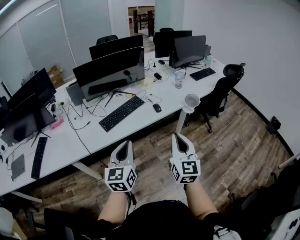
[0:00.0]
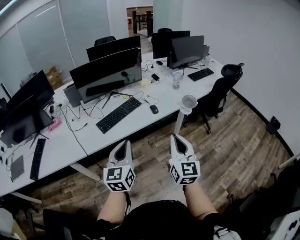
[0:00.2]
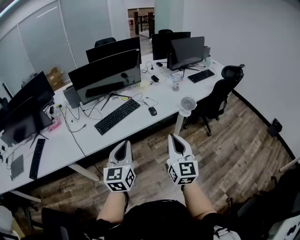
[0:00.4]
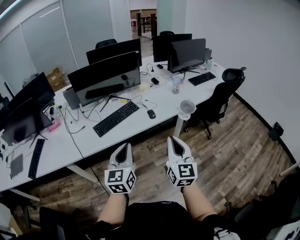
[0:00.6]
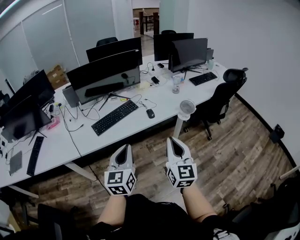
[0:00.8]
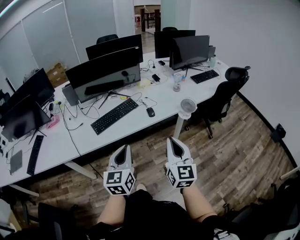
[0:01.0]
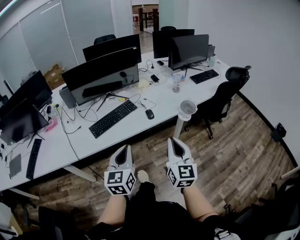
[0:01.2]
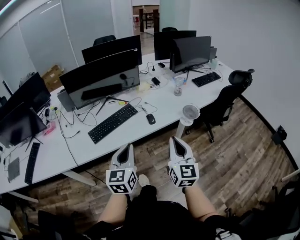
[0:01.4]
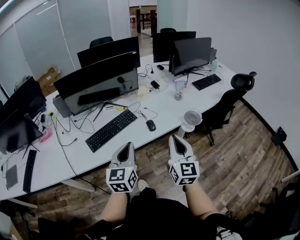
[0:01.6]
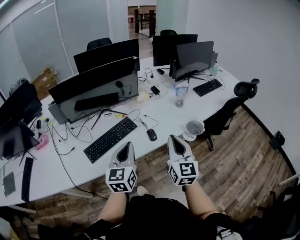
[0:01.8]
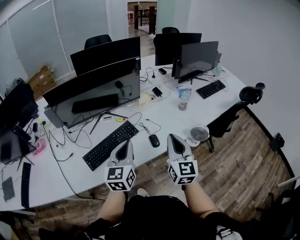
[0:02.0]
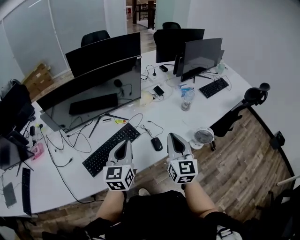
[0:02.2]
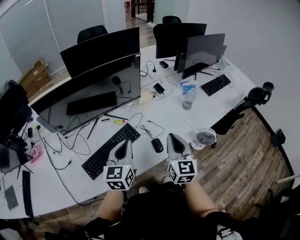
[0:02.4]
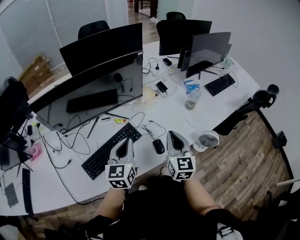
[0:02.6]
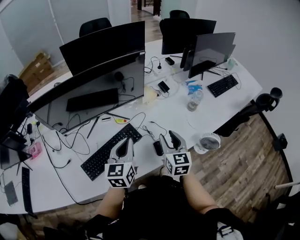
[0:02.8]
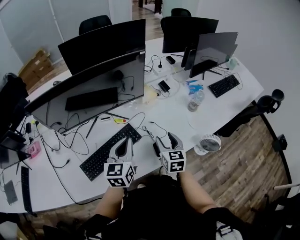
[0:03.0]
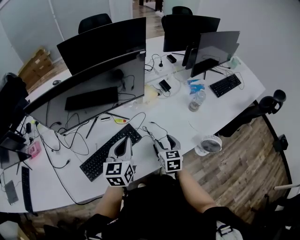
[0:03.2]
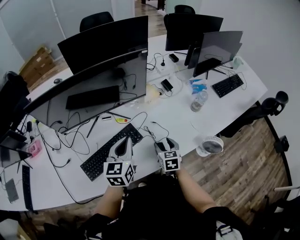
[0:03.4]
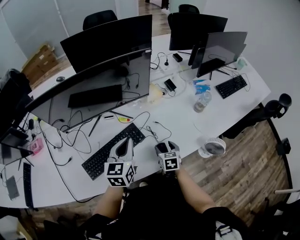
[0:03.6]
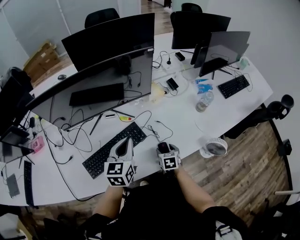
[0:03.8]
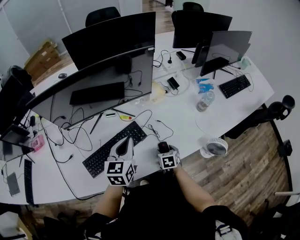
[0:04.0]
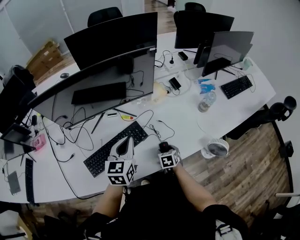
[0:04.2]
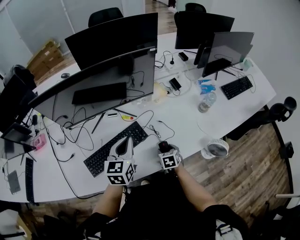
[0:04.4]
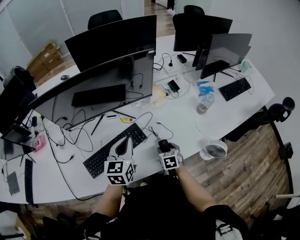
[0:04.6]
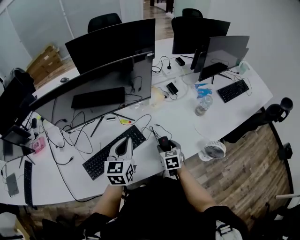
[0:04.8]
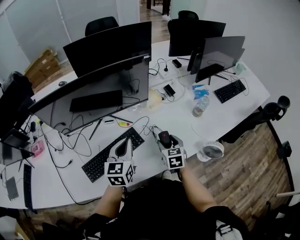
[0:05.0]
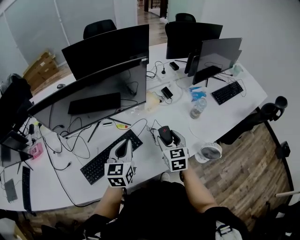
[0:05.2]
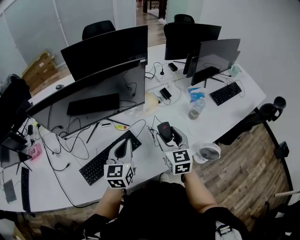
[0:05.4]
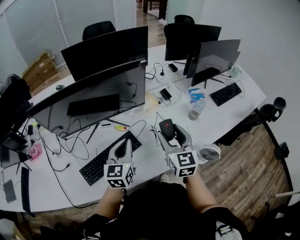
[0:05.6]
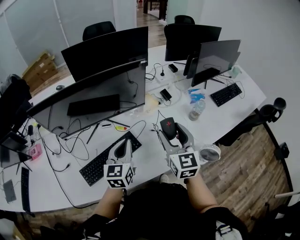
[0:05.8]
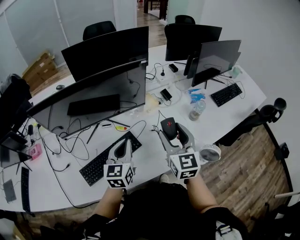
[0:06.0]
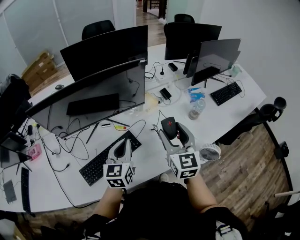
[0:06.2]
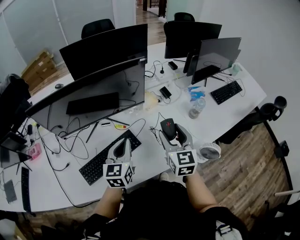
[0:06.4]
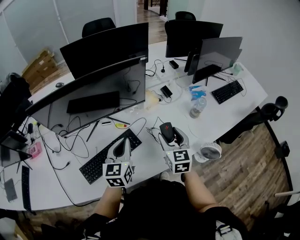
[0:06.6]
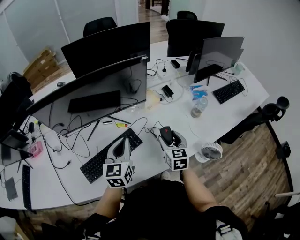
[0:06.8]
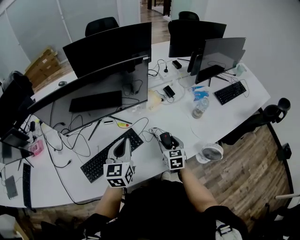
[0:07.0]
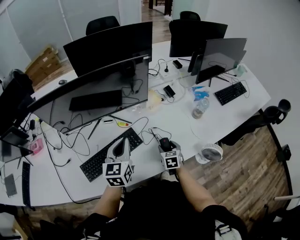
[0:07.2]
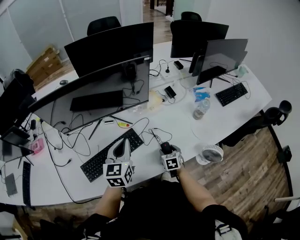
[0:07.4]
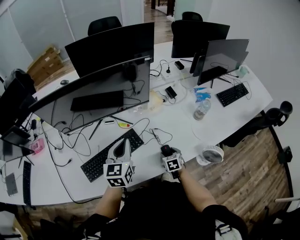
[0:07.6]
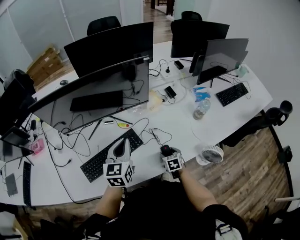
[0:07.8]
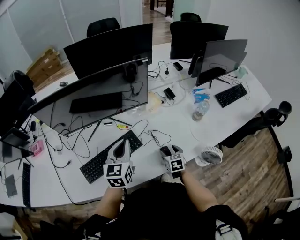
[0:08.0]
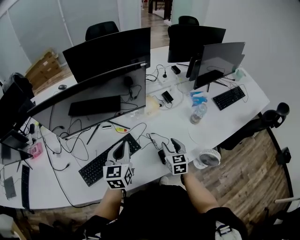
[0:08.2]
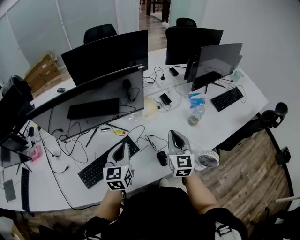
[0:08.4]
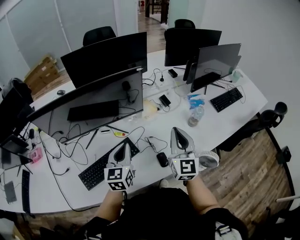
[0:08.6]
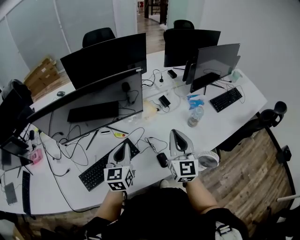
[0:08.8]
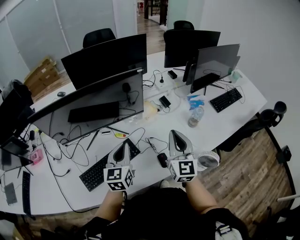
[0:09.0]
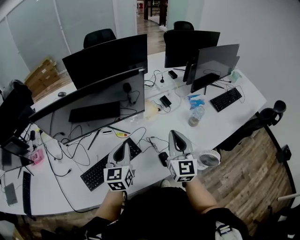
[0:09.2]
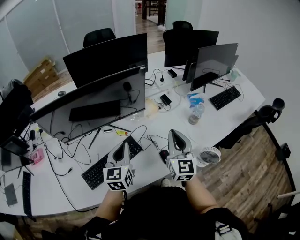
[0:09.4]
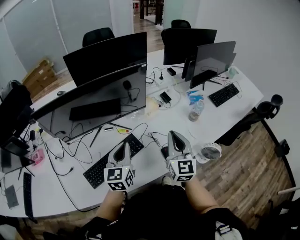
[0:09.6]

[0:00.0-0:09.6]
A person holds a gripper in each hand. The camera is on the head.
0:00.0 to 0:01.6: The left gripper shifts some 20 cm forward and to the right. The right gripper moves forward, roughly 20 cm.
0:01.6 to 0:03.2: The right gripper goes some 40 cm forward and downward, points its fingers approximately 30 degrees further downward, and opens its fingers. The left gripper is displaced forward by roughly 30 cm.
0:03.2 to 0:04.8: The right gripper is displaced downward by some 5 cm.
0:04.8 to 0:06.4: The right gripper heads upward, covering some 25 cm, and tips its fingers upward by roughly 30 degrees.
0:06.4 to 0:08.0: The right gripper moves downward, about 30 cm, and angles its fingers downward, by approximately 30 degrees.
0:08.0 to 0:09.6: The right gripper shifts about 30 cm upward, points its fingers some 40 degrees further upward, and closes.

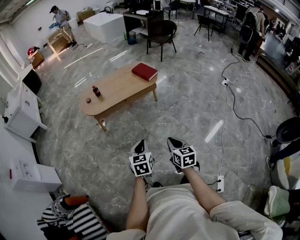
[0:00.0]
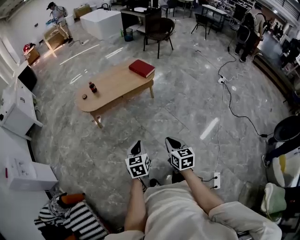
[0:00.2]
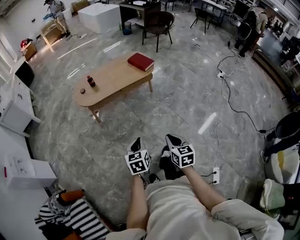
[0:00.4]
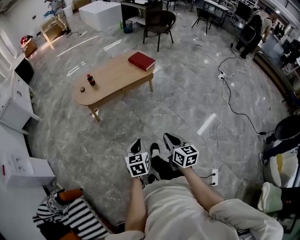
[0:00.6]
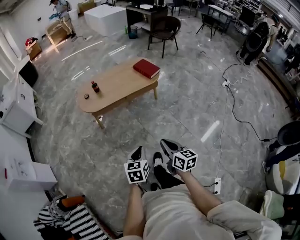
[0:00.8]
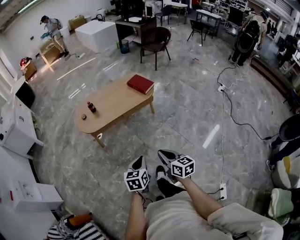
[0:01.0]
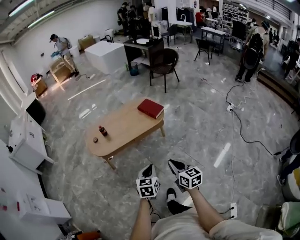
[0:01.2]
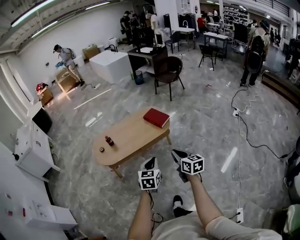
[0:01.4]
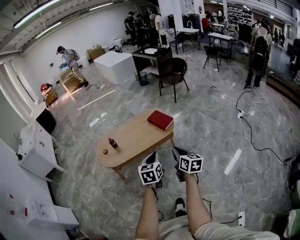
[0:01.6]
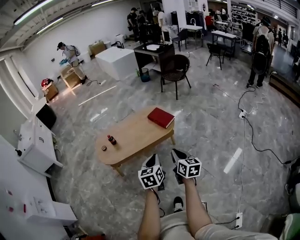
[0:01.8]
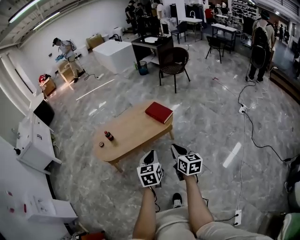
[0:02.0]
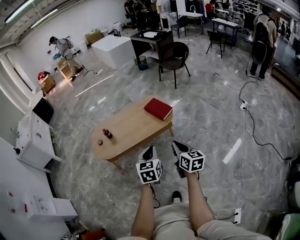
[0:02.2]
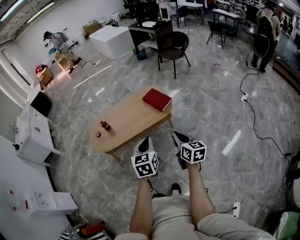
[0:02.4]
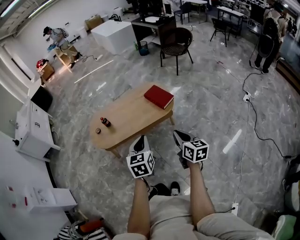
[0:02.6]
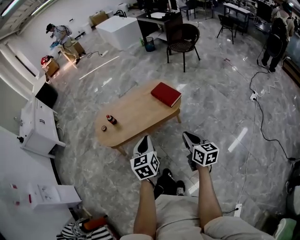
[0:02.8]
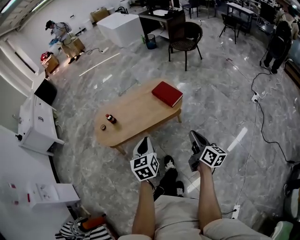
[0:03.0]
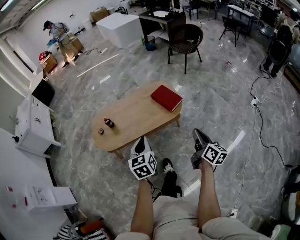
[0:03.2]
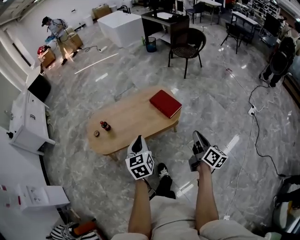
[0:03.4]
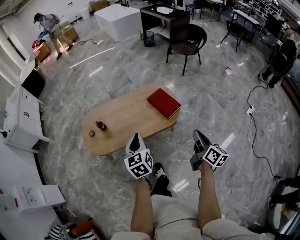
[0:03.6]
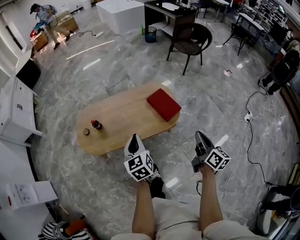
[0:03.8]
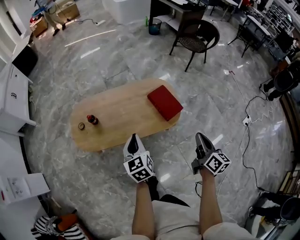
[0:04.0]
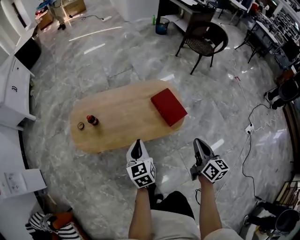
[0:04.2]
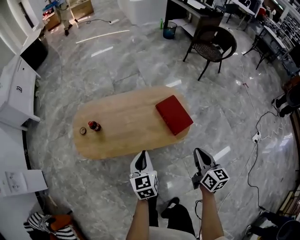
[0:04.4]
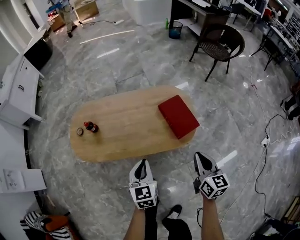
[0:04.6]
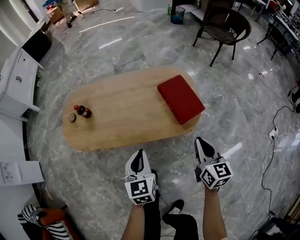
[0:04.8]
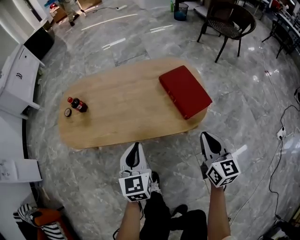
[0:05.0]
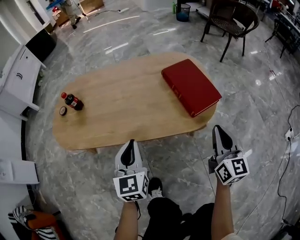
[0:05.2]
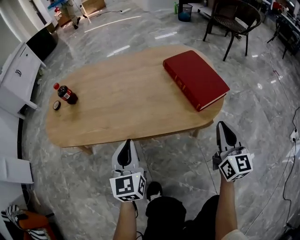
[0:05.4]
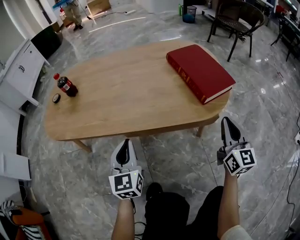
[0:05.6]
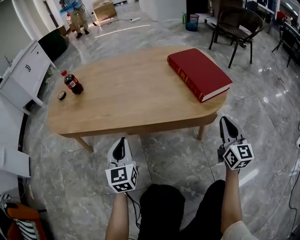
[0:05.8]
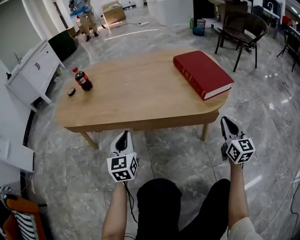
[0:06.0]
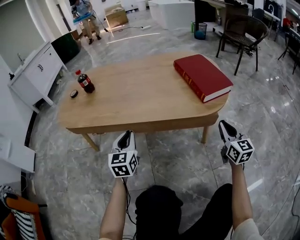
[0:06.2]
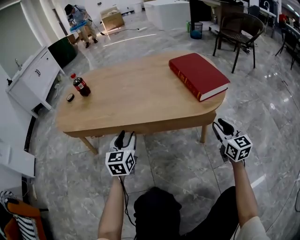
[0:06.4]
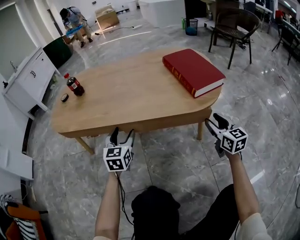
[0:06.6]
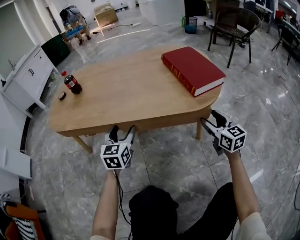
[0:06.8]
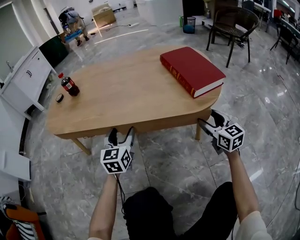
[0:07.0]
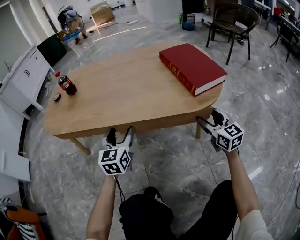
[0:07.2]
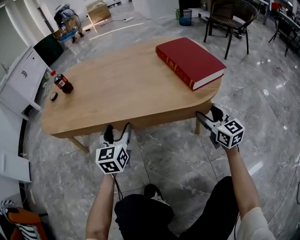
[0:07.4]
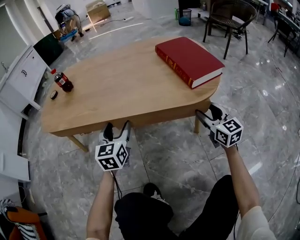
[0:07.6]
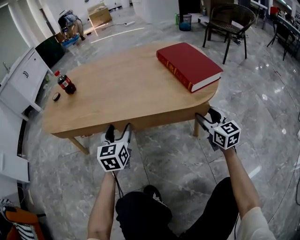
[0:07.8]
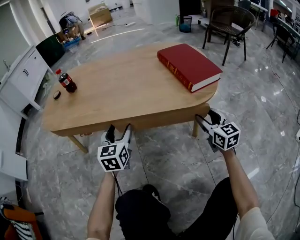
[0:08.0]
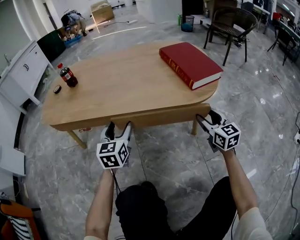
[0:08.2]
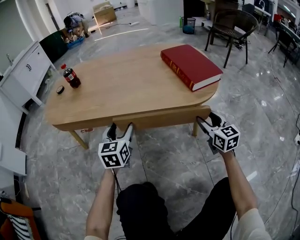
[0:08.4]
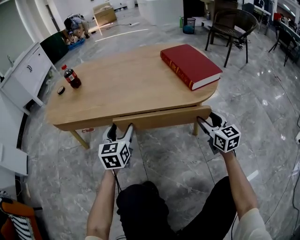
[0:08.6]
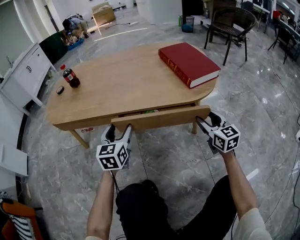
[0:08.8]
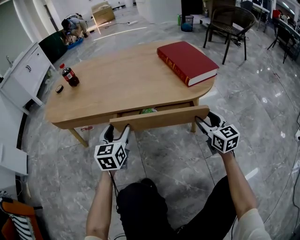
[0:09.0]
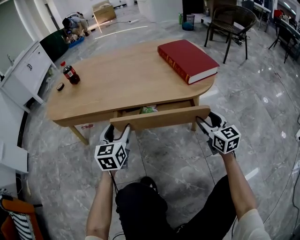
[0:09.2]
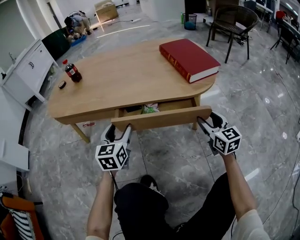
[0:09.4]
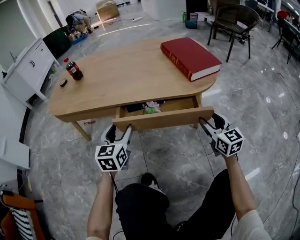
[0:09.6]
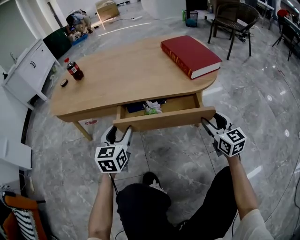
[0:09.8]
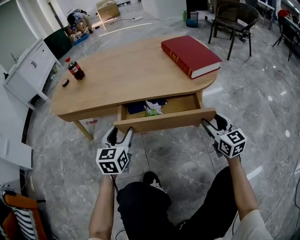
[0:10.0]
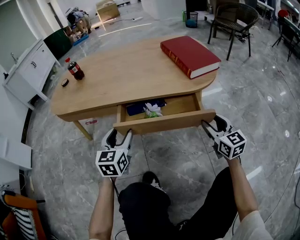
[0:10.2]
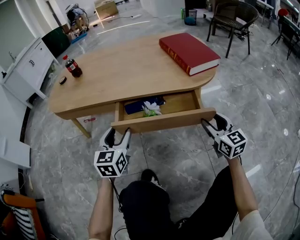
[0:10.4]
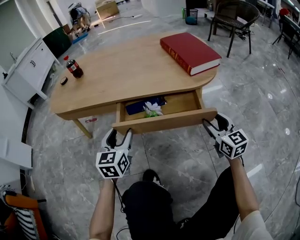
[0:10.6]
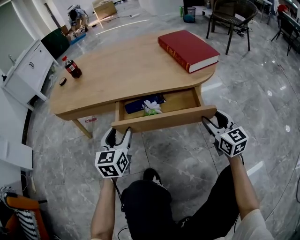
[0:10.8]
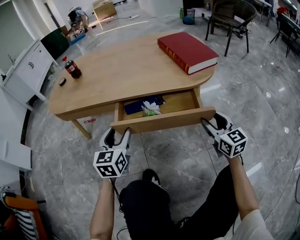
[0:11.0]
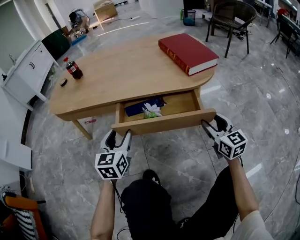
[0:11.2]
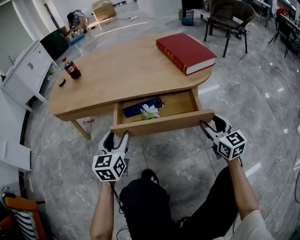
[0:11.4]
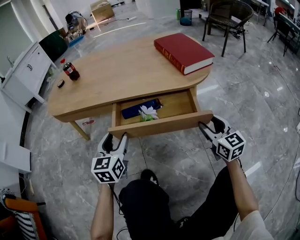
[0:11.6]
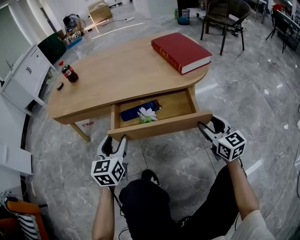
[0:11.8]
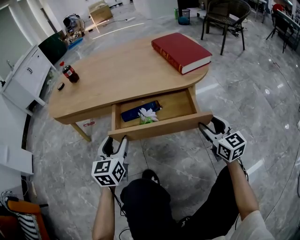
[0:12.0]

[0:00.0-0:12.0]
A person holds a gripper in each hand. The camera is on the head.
0:00.0 to 0:01.6: The two grippers go about 30 cm forward.
0:01.6 to 0:03.0: The left gripper travels forward by roughly 10 cm; the right gripper travels forward and to the right by approximately 15 cm.
0:03.0 to 0:04.4: The right gripper moves forward, some 30 cm, and rotates some 30 degrees; the left gripper moves forward and downward, some 30 cm.
0:04.4 to 0:06.0: Both grippers travel together downward, approximately 40 cm. The left gripper rotates approximately 20 degrees; the right gripper swivels roughly 30 degrees.
0:06.0 to 0:07.6: The right gripper heads downward, covering approximately 5 cm, and opens up; the left gripper shifts by some 5 cm, and opens up.
0:07.6 to 0:09.0: Both grippers travel together backward, approximately 5 cm.
0:09.0 to 0:10.4: Both grippers move backward, approximately 5 cm.
0:10.4 to 0:12.0: There are only small adjustments of the grippers.

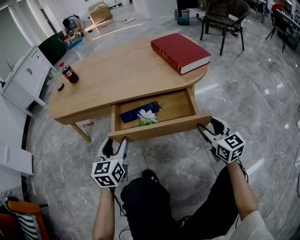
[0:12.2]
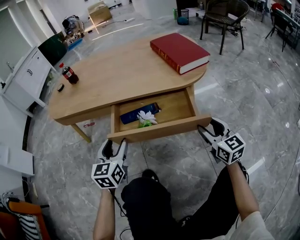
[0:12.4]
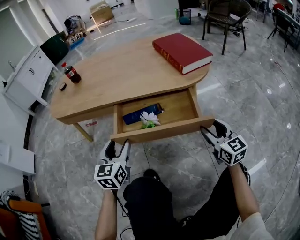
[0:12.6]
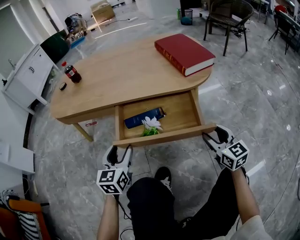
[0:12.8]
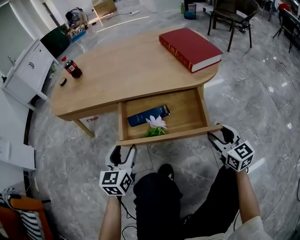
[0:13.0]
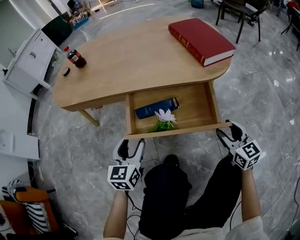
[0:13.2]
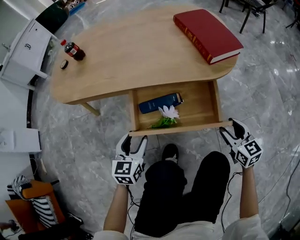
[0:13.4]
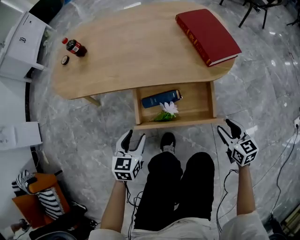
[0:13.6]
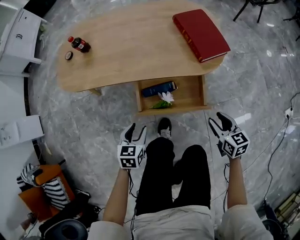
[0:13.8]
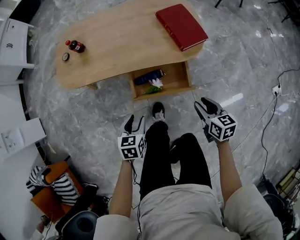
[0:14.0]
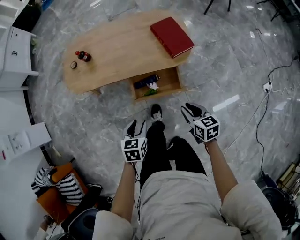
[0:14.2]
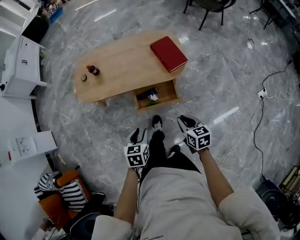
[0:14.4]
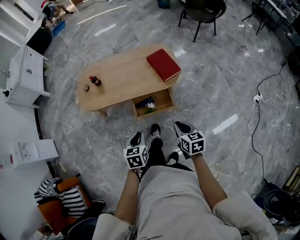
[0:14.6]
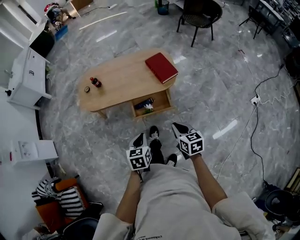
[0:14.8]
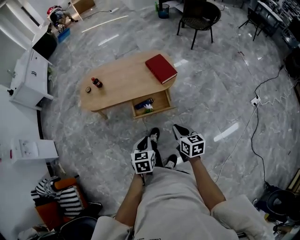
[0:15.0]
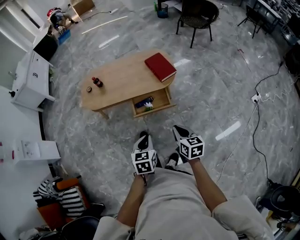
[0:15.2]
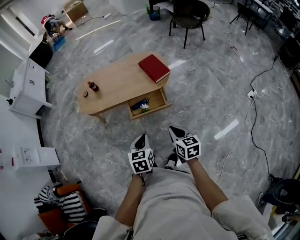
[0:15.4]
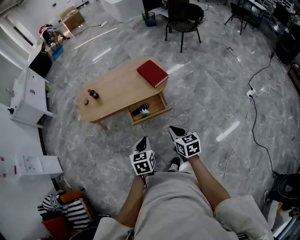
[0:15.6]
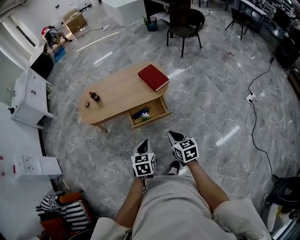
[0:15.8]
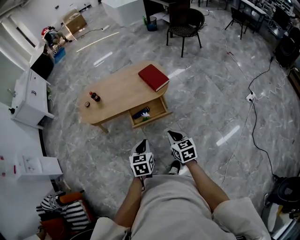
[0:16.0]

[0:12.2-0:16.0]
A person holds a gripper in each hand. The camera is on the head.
0:12.2 to 0:13.4: The grippers make only small movements.
0:13.4 to 0:14.8: The right gripper is displaced upward by approximately 50 cm, and closes up; the left gripper goes roughly 50 cm upward and backward, and closes.
0:14.8 to 0:16.0: Both grippers travel together backward, approximately 5 cm.
